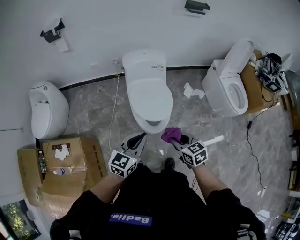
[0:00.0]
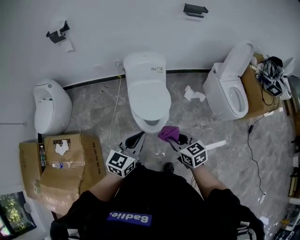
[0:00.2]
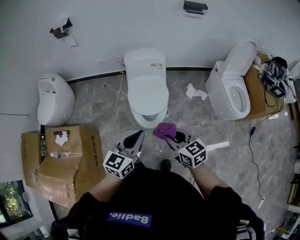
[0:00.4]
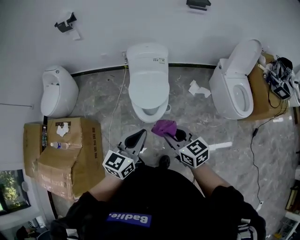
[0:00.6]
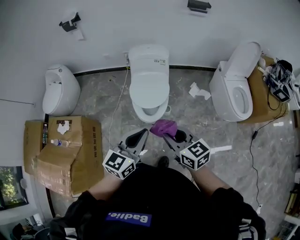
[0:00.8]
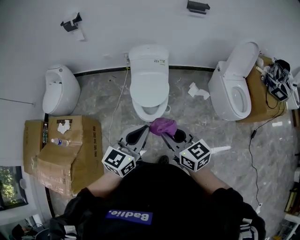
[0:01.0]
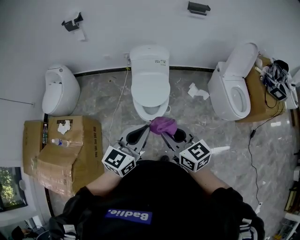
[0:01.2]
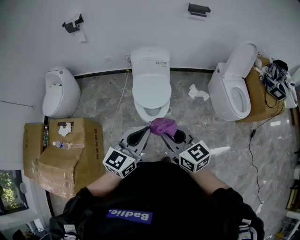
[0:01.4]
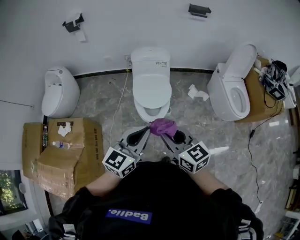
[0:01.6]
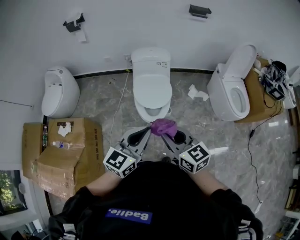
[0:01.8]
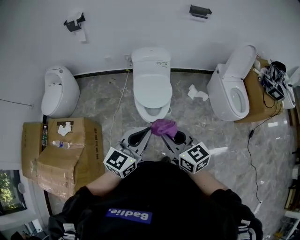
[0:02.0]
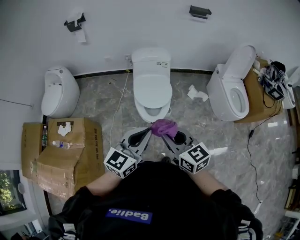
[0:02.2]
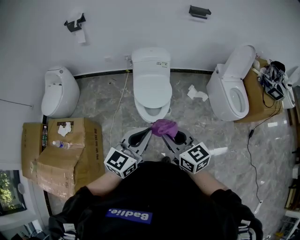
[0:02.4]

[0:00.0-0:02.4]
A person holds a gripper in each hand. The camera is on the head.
0.0 to 1.2 s: The right gripper heads upward and backward, covering roughly 20 cm, and swivels approximately 30 degrees; the left gripper goes approximately 20 cm upward, backward and to the right.
1.2 to 2.4 s: The grippers make only small movements.

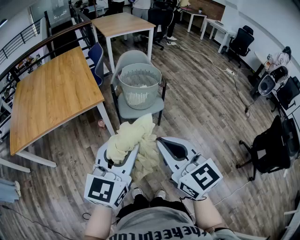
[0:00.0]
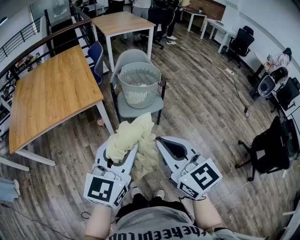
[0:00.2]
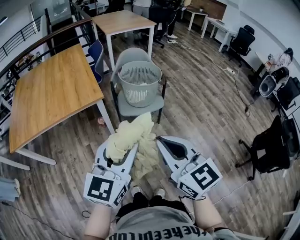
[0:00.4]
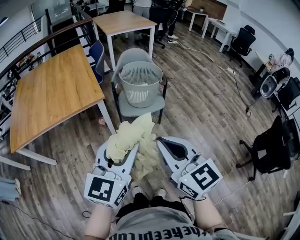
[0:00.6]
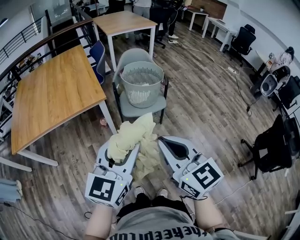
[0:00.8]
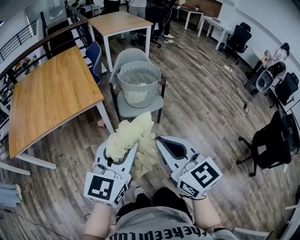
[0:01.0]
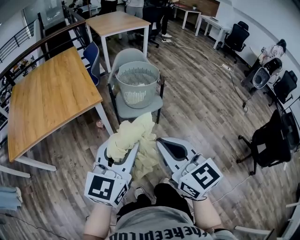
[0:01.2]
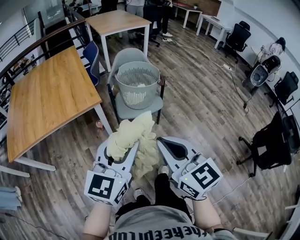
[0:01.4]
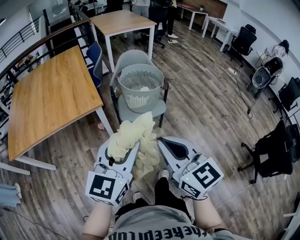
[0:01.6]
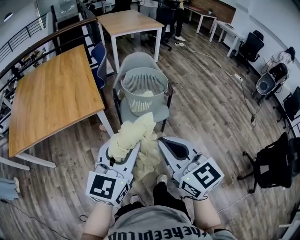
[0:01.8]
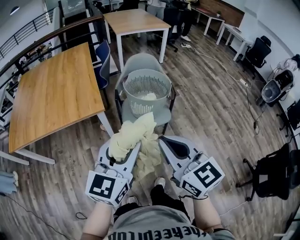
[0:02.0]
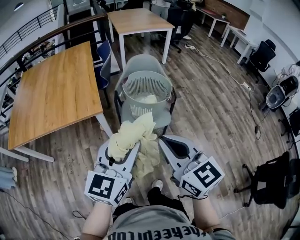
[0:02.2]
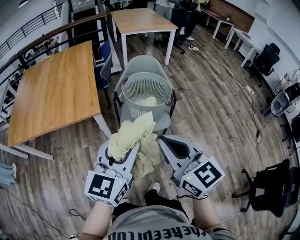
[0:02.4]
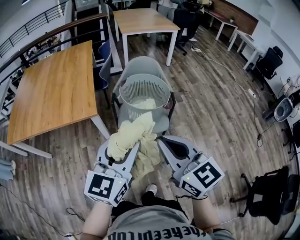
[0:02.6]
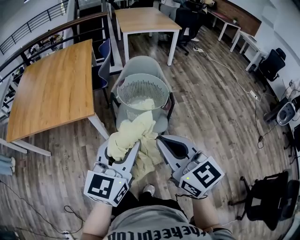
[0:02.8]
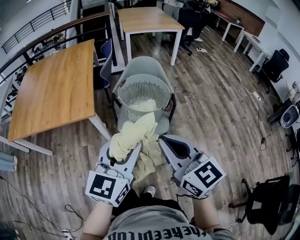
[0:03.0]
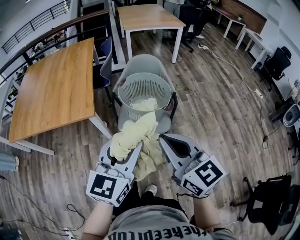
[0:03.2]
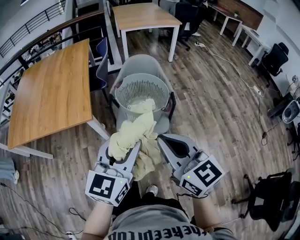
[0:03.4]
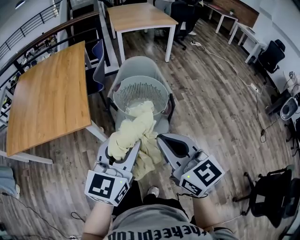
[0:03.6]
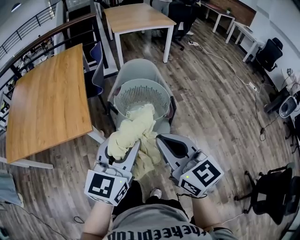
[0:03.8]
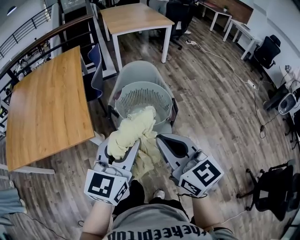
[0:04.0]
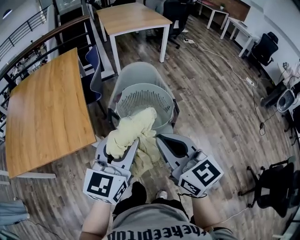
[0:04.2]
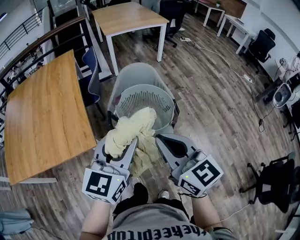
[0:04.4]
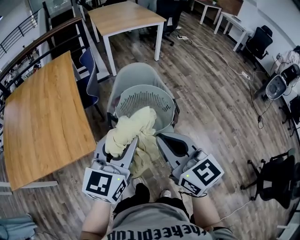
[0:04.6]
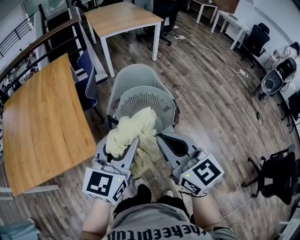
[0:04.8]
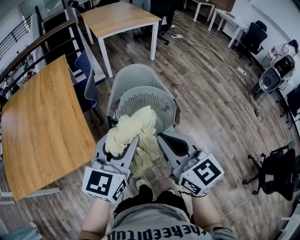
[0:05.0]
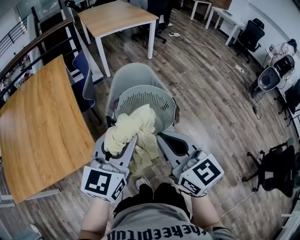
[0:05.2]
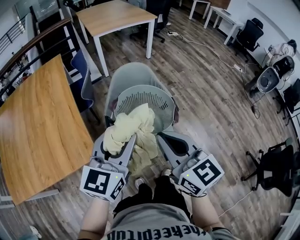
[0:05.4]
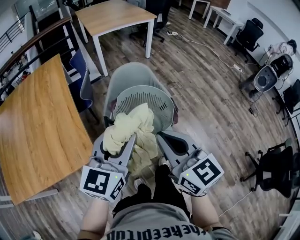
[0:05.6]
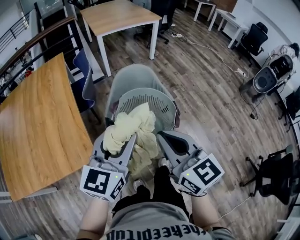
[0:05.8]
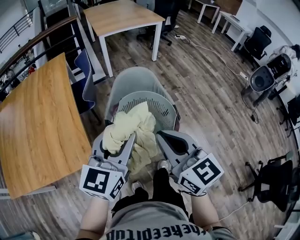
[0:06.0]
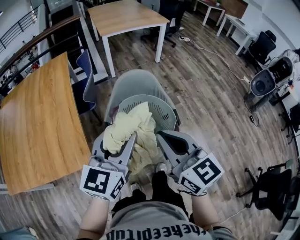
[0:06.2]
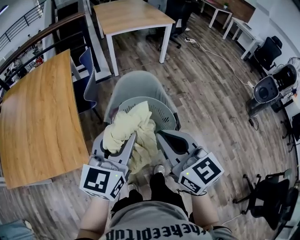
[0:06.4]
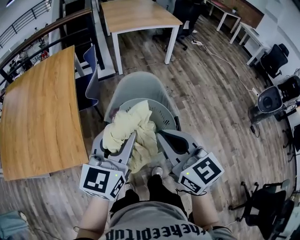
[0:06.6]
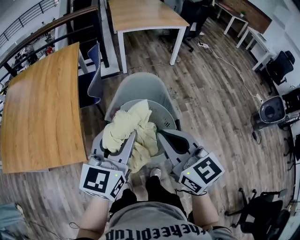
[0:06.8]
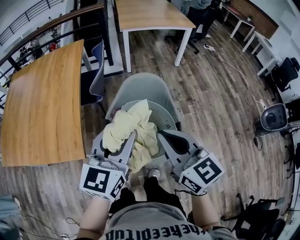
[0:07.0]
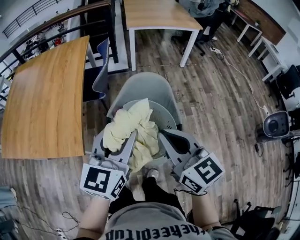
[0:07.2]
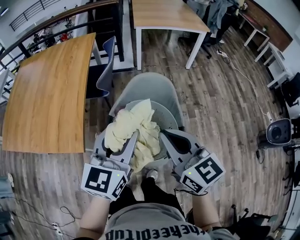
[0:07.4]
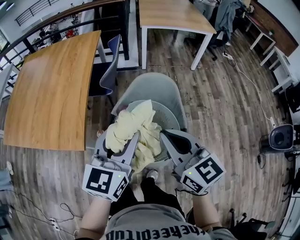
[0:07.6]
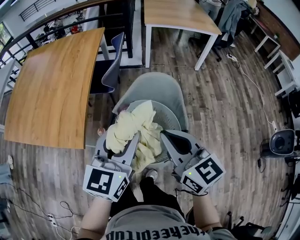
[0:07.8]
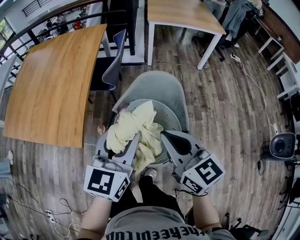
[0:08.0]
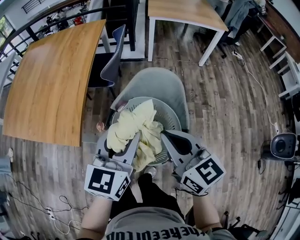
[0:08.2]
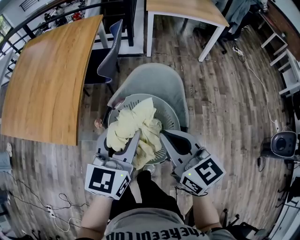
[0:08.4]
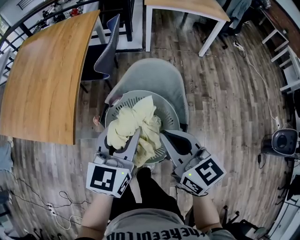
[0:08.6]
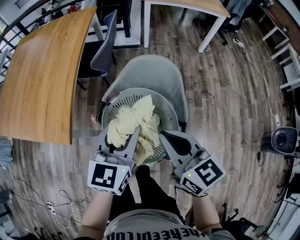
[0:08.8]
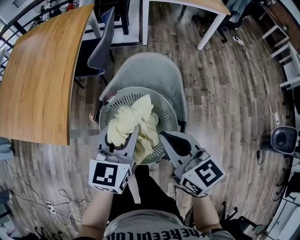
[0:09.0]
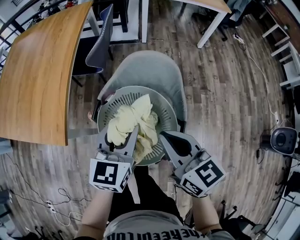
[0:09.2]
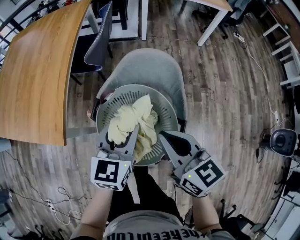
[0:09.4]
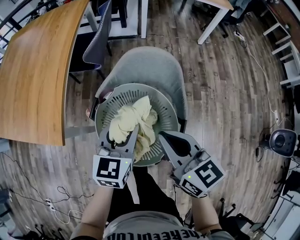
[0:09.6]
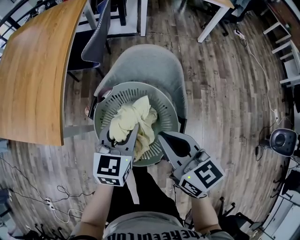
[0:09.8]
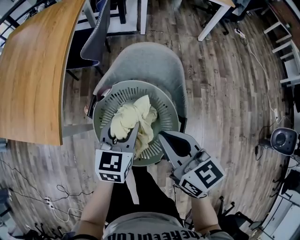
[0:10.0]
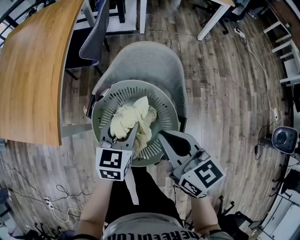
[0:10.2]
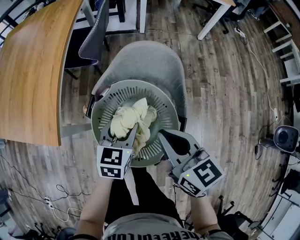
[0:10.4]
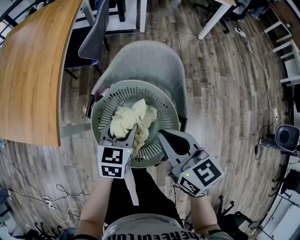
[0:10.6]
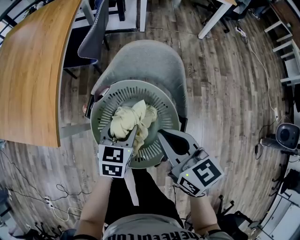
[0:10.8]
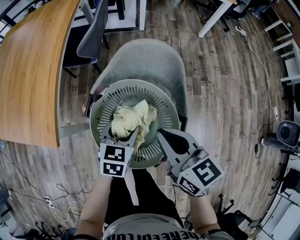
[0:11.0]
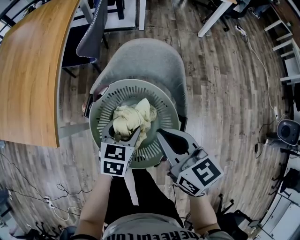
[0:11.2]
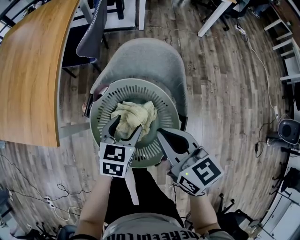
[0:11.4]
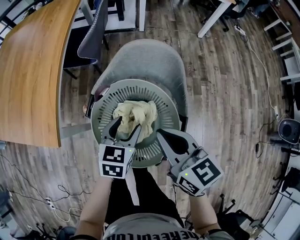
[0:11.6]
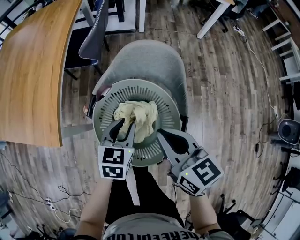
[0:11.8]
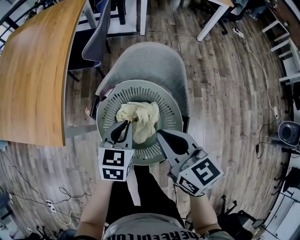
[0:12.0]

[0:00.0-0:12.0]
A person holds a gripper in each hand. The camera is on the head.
0.0 to 1.6 s: The grippers both shift forward by some 5 cm.
1.6 to 3.0 s: The right gripper goes approximately 20 cm forward and to the right, while the left gripper moves to the right and forward, roughly 20 cm.
3.0 to 4.4 s: Both grippers move forward, approximately 15 cm.
4.4 to 6.0 s: Both grippers travel together forward, some 10 cm.
6.0 to 7.6 s: The left gripper goes some 10 cm to the right and forward, and swivels some 30 degrees, while the right gripper travels forward and to the right by about 15 cm, and changes its angle by about 20 degrees.
7.6 to 9.0 s: The two grippers go approximately 10 cm downward.
9.0 to 10.4 s: The left gripper moves downward, about 15 cm.
10.4 to 12.0 s: The left gripper closes.

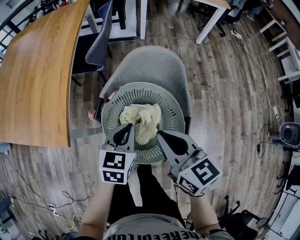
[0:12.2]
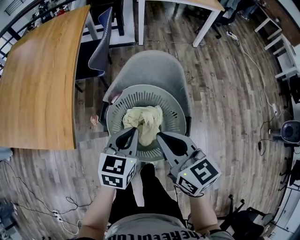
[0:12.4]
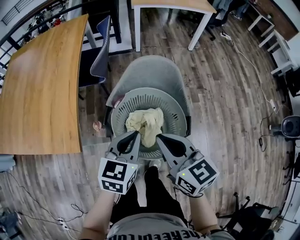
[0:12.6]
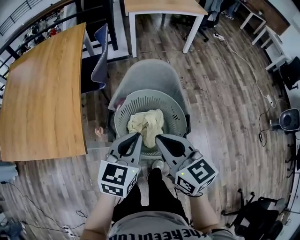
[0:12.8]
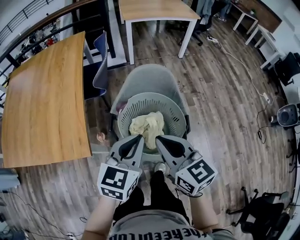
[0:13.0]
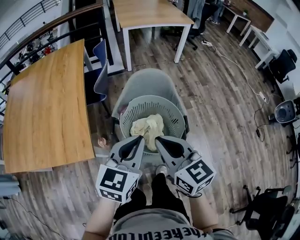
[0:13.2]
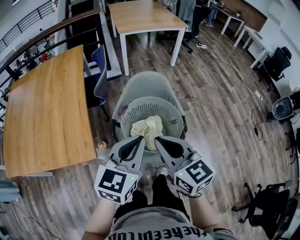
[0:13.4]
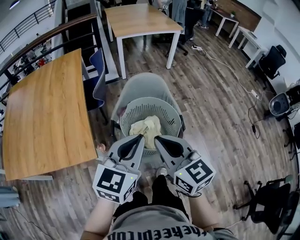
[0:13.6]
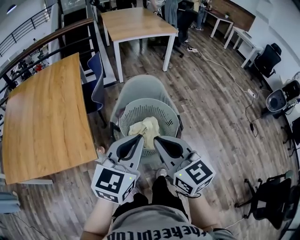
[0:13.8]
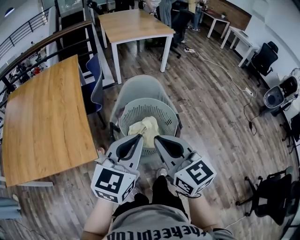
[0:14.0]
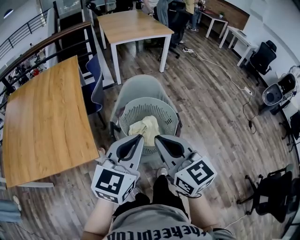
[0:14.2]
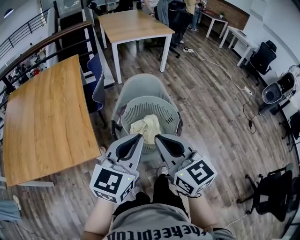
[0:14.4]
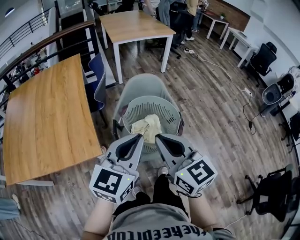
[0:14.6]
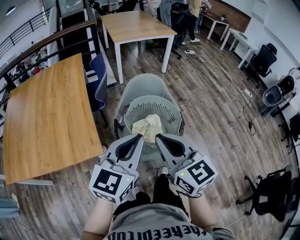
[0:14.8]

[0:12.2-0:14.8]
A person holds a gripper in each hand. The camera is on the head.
12.2 to 13.4 s: The left gripper heads upward and backward, covering about 20 cm, and changes its angle by approximately 30 degrees; the right gripper moves upward, backward and to the left, approximately 15 cm.
13.4 to 14.8 s: Both grippers travel together backward, about 5 cm.

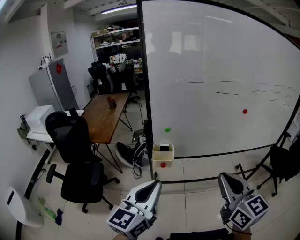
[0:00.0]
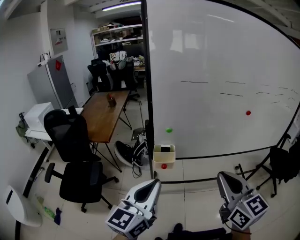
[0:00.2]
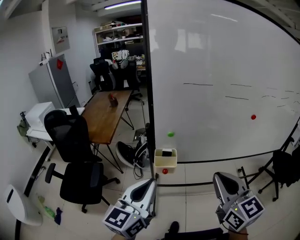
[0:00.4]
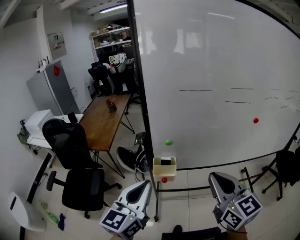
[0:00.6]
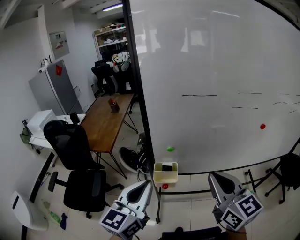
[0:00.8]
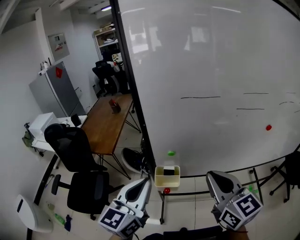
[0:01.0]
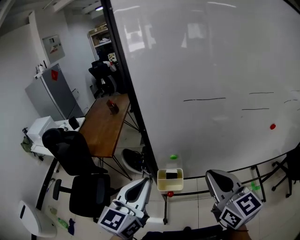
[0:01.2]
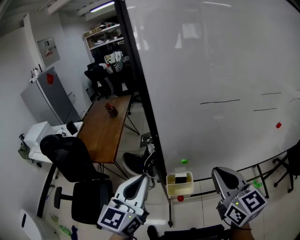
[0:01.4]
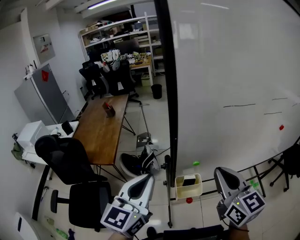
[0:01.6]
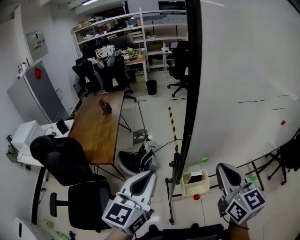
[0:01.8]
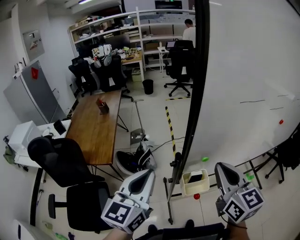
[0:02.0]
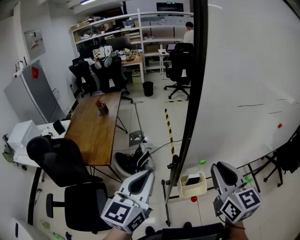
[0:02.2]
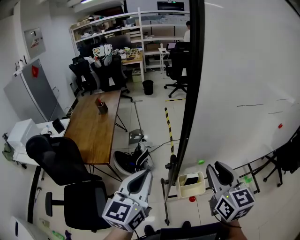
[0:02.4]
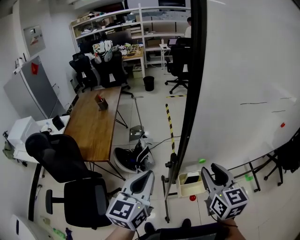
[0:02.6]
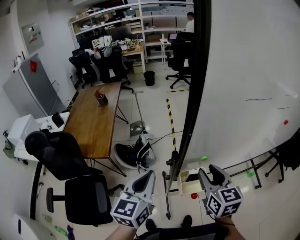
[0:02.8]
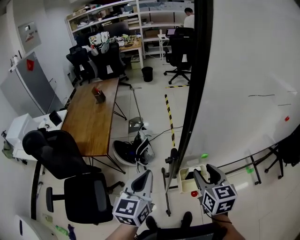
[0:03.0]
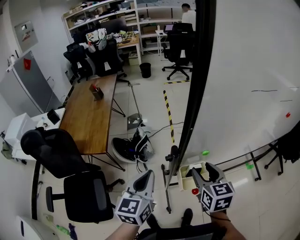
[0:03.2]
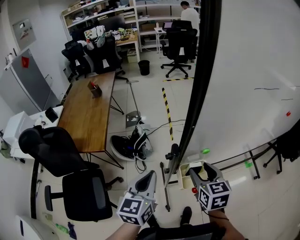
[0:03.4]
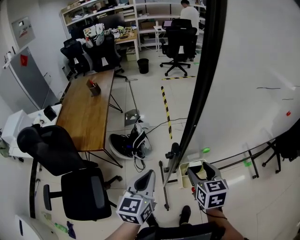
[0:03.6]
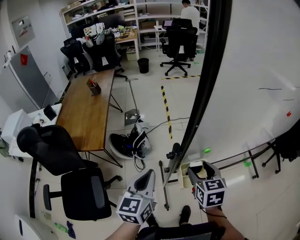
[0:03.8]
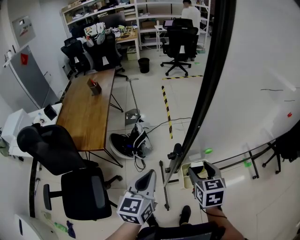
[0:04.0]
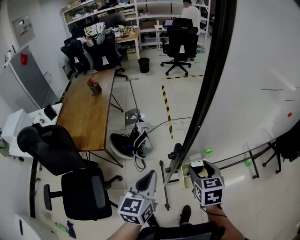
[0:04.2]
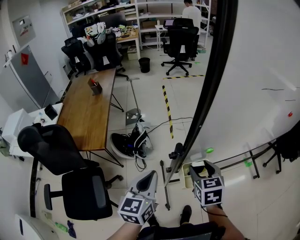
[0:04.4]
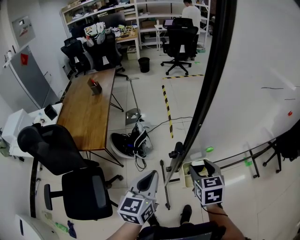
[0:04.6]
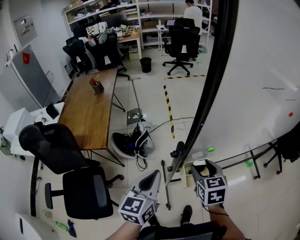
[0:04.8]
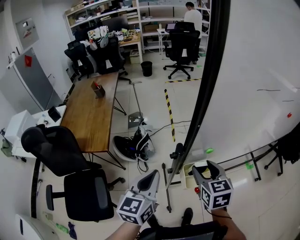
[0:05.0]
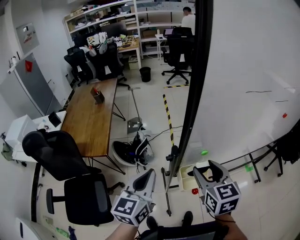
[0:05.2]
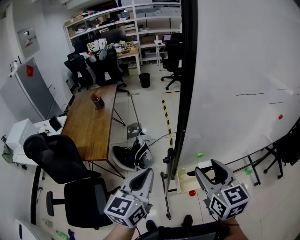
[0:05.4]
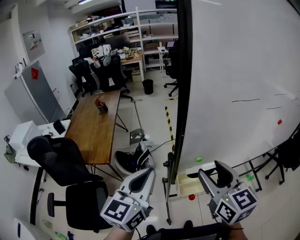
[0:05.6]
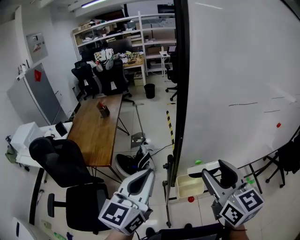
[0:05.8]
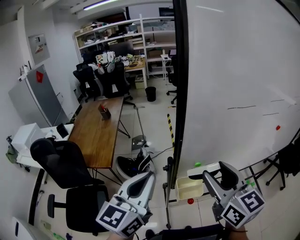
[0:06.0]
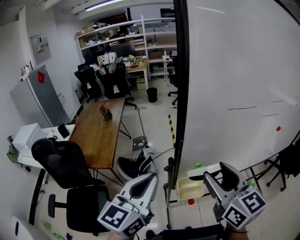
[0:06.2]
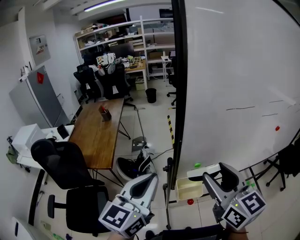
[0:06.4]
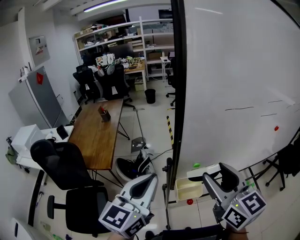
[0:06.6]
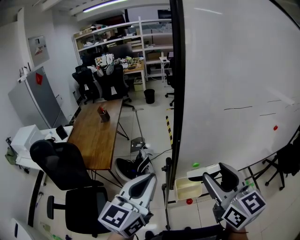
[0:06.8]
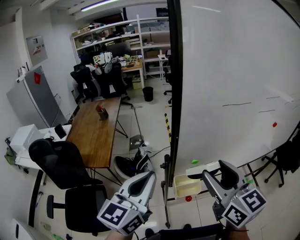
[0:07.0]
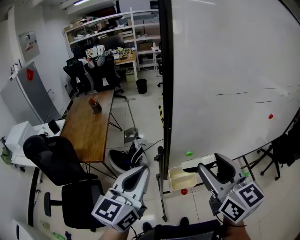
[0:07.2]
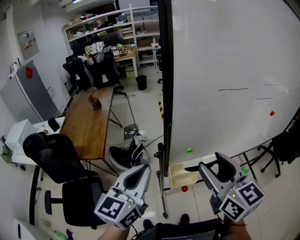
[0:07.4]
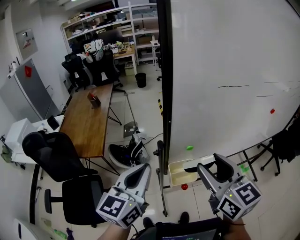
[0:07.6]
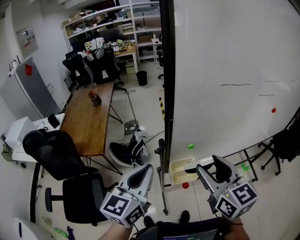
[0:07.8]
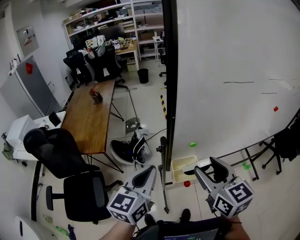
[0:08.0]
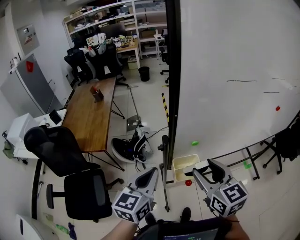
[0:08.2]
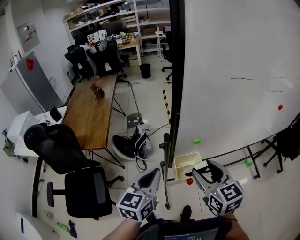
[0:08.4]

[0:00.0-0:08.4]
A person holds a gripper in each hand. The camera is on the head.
0.0 to 1.4 s: The two grippers go roughly 35 cm forward.
1.4 to 2.8 s: The right gripper heads downward, to the left and forward, covering roughly 20 cm, changes its angle by roughly 20 degrees, and opens up, while the left gripper heads to the left, downward and forward, covering approximately 20 cm.
2.8 to 4.2 s: Both grippers move downward, about 10 cm.
4.2 to 5.6 s: Both grippers move upward, about 20 cm. The right gripper rotates roughly 30 degrees.
5.6 to 7.0 s: The left gripper ends up about 5 cm from where it was; the right gripper shifts about 5 cm upward.
7.0 to 8.4 s: The two grippers go approximately 15 cm downward.
